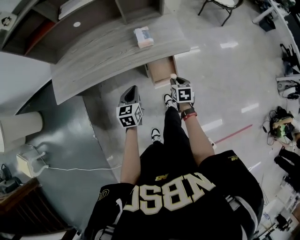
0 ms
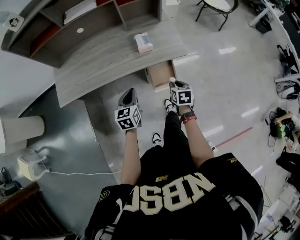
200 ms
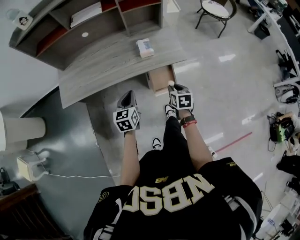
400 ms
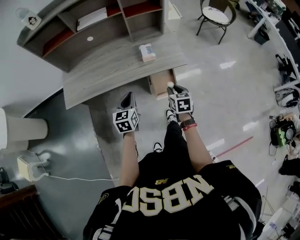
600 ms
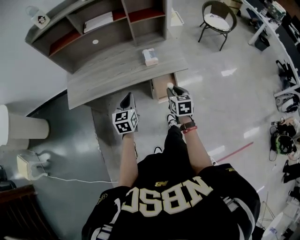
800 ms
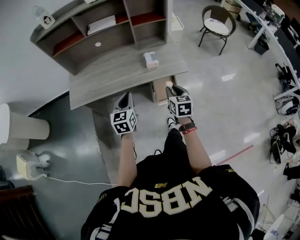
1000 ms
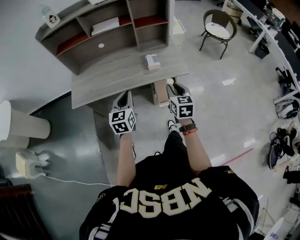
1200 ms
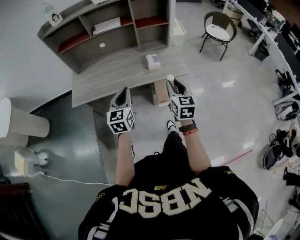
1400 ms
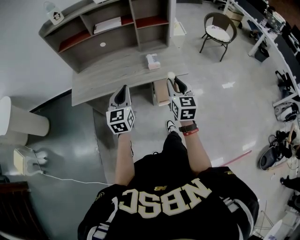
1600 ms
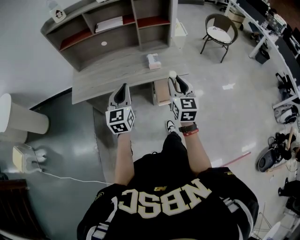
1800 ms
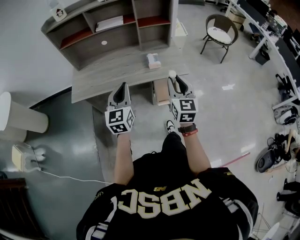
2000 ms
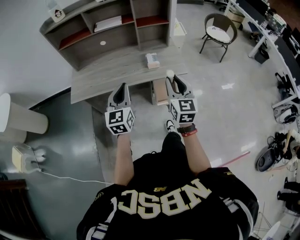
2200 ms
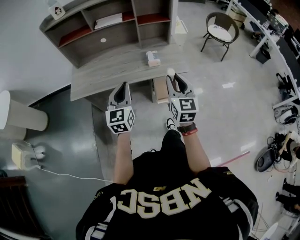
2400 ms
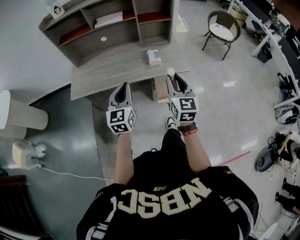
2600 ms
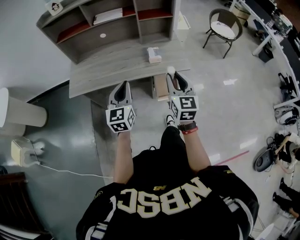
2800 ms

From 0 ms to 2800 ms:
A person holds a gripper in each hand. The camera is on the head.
From 0 ms to 1400 ms: Both grippers move upward, about 25 cm. The right gripper tilts its fingers approximately 30 degrees upward. The left gripper turns by about 20 degrees.
From 1400 ms to 2800 ms: The grippers move only a little.

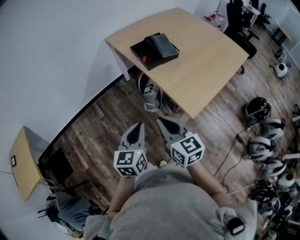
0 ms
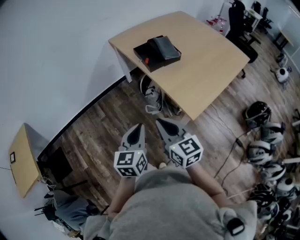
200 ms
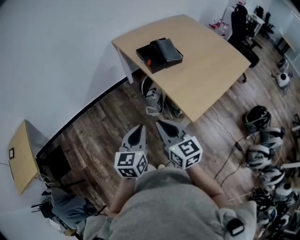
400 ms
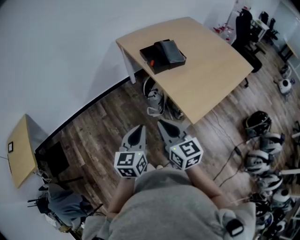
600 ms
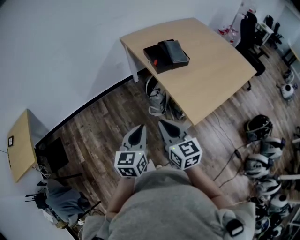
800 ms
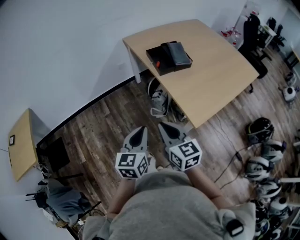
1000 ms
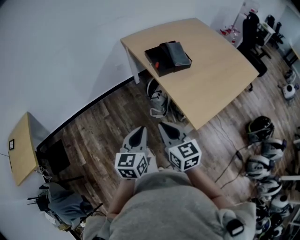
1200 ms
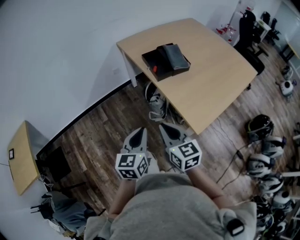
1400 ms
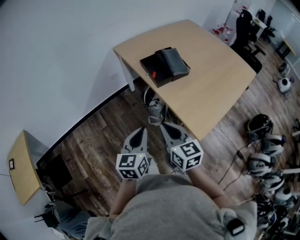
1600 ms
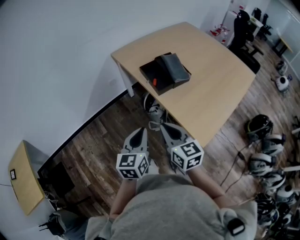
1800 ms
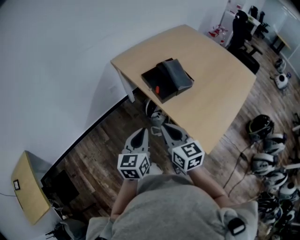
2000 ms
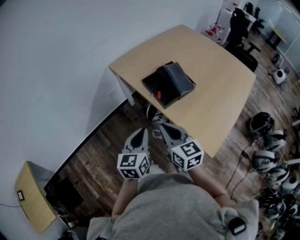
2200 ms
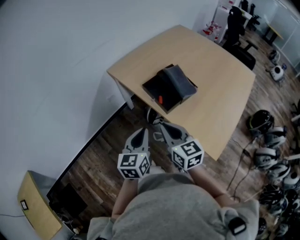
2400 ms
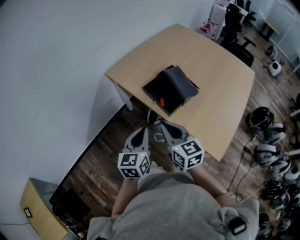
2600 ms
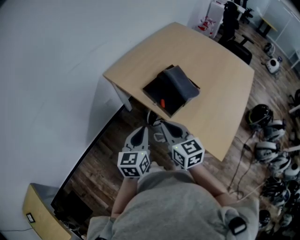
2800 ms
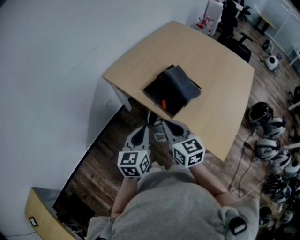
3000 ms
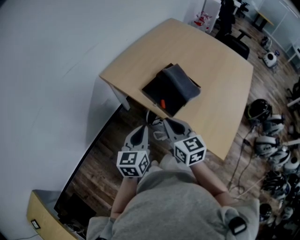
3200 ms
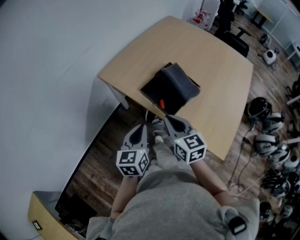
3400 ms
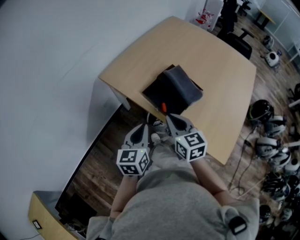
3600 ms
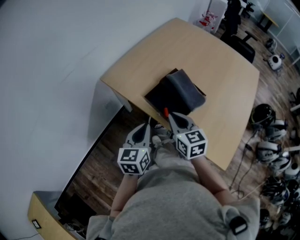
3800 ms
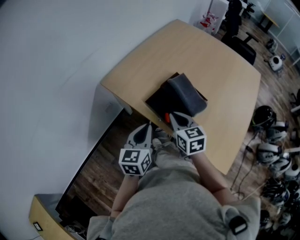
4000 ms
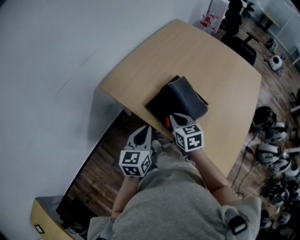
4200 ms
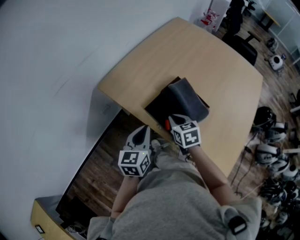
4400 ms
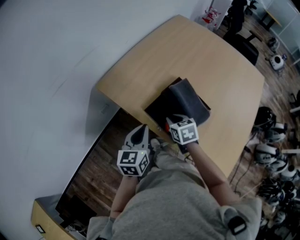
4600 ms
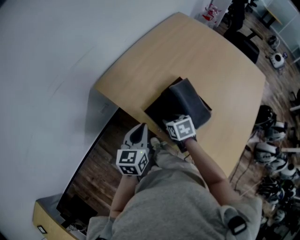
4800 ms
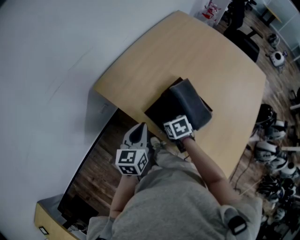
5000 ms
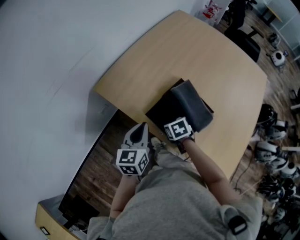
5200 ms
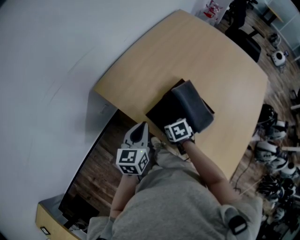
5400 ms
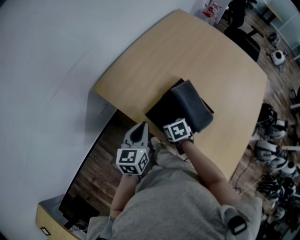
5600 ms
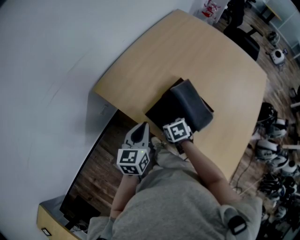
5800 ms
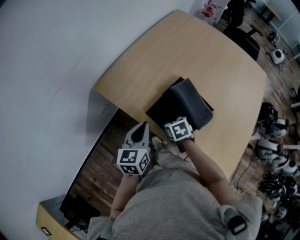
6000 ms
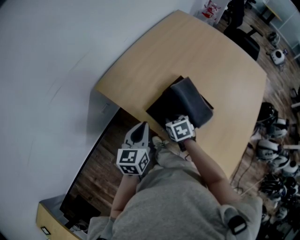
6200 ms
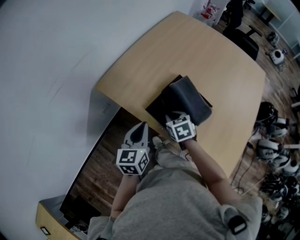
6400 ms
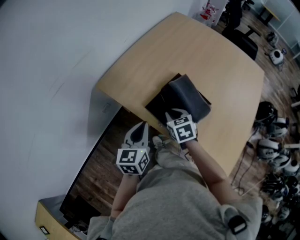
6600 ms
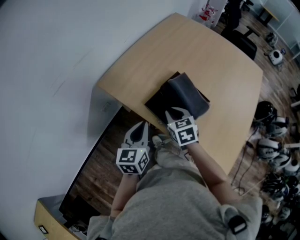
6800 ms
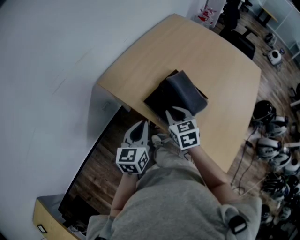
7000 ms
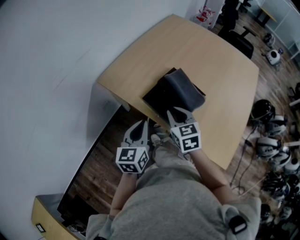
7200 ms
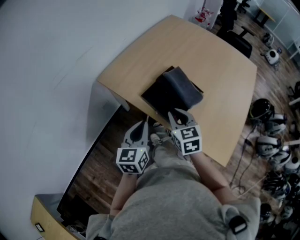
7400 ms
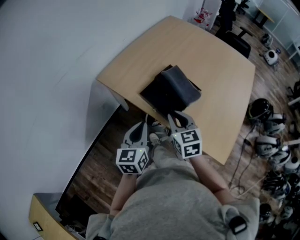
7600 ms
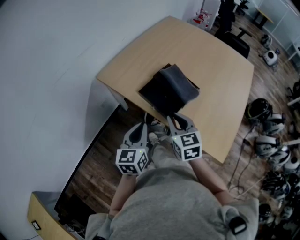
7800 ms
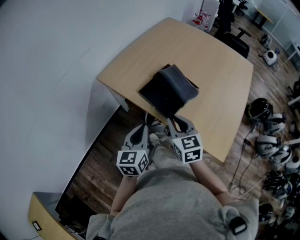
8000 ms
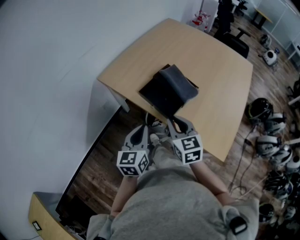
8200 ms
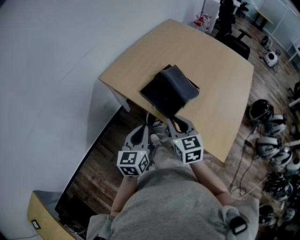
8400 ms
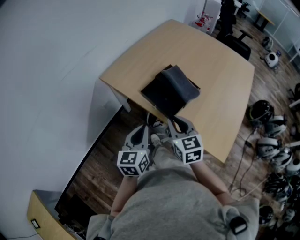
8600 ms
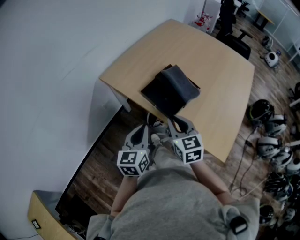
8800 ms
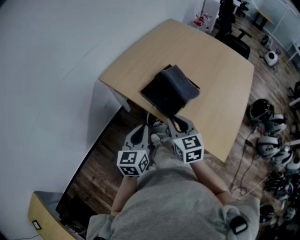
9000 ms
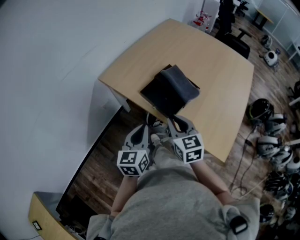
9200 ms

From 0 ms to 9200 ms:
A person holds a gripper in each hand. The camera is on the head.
From 0 ms to 1600 ms: The two grippers go about 10 cm forward.
From 1600 ms to 3000 ms: The two grippers go about 25 cm forward.
From 3000 ms to 4600 ms: The left gripper travels forward by approximately 15 cm. The right gripper is displaced forward and downward by roughly 25 cm, and angles its fingers downward, by roughly 30 degrees.
From 6200 ms to 7600 ms: The left gripper shifts roughly 10 cm backward, while the right gripper moves upward and backward, roughly 20 cm, and changes its angle by roughly 30 degrees.
From 7600 ms to 9200 ms: The grippers make only small movements.

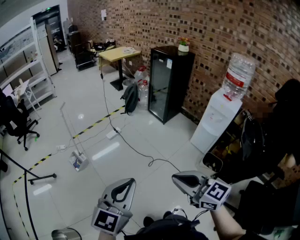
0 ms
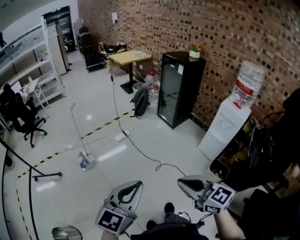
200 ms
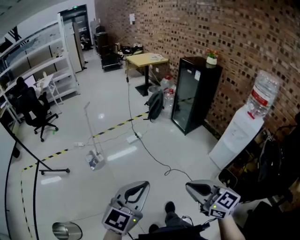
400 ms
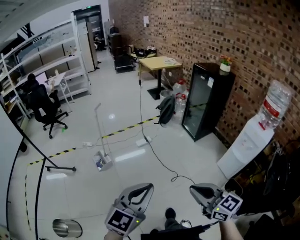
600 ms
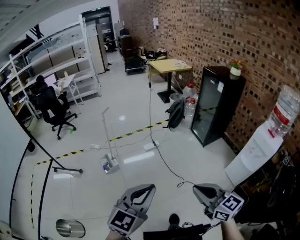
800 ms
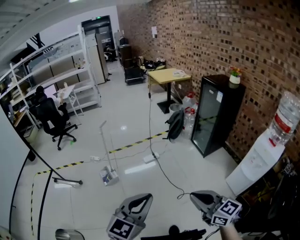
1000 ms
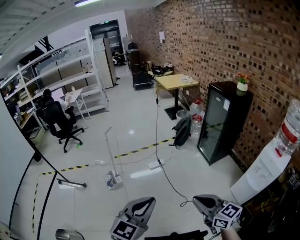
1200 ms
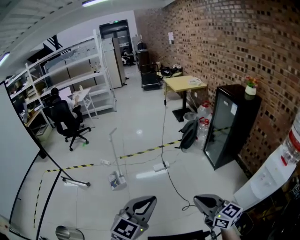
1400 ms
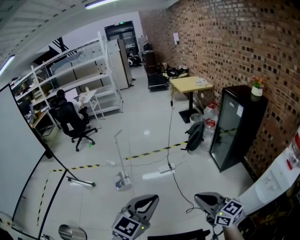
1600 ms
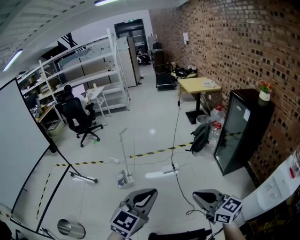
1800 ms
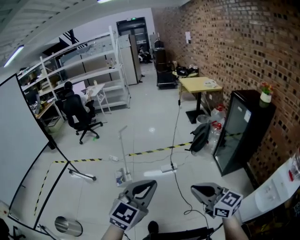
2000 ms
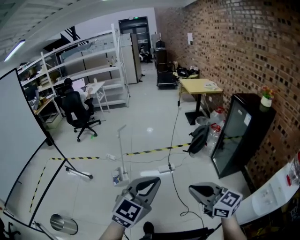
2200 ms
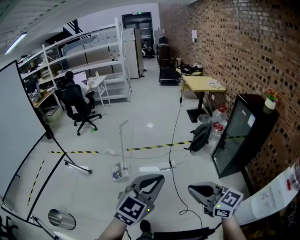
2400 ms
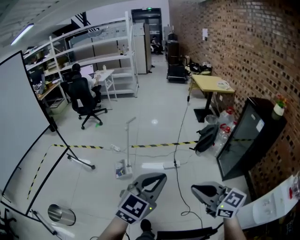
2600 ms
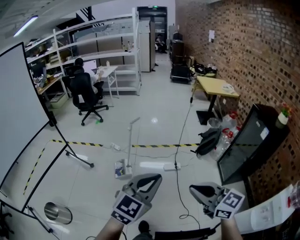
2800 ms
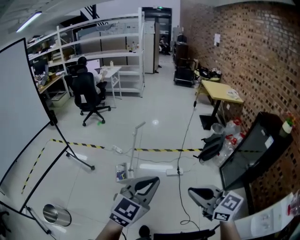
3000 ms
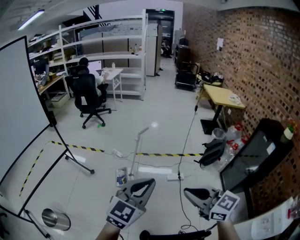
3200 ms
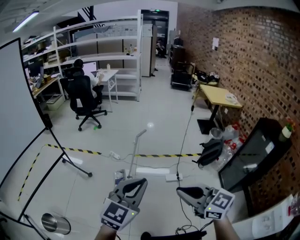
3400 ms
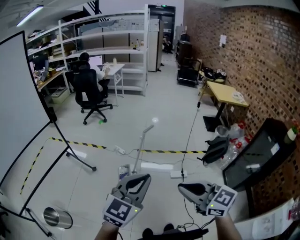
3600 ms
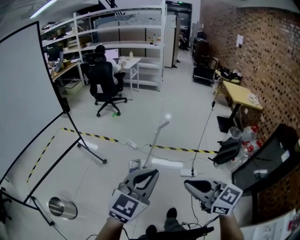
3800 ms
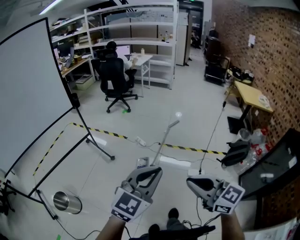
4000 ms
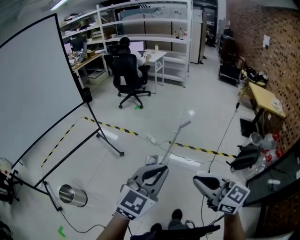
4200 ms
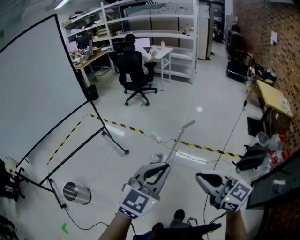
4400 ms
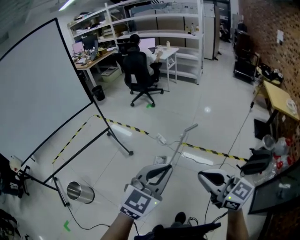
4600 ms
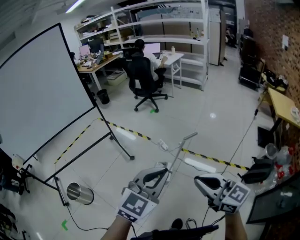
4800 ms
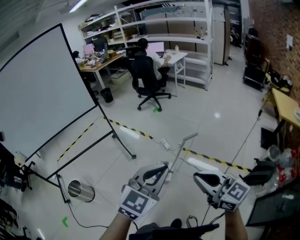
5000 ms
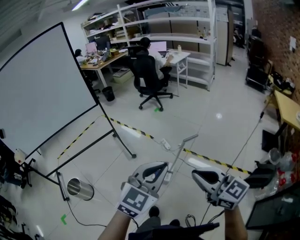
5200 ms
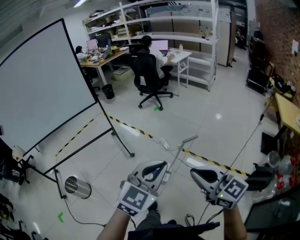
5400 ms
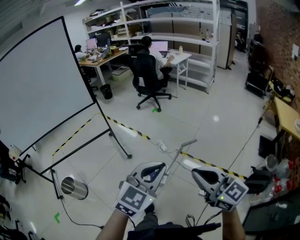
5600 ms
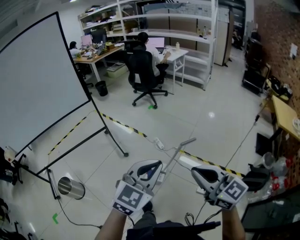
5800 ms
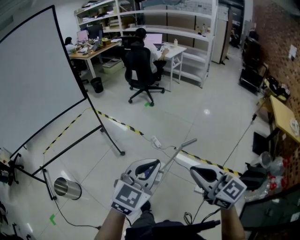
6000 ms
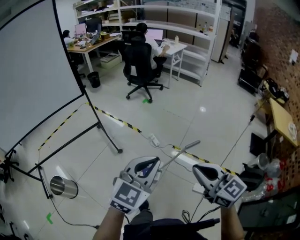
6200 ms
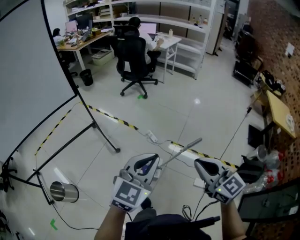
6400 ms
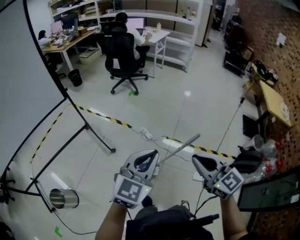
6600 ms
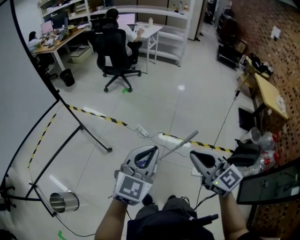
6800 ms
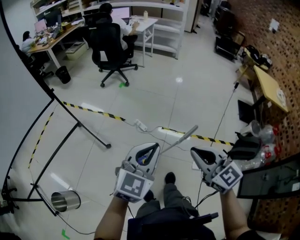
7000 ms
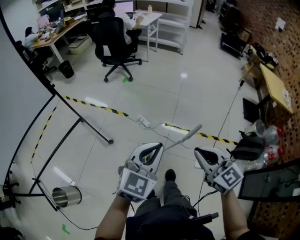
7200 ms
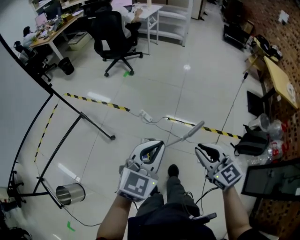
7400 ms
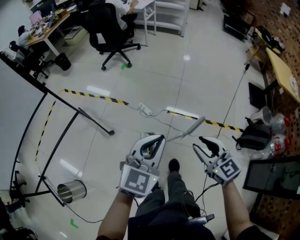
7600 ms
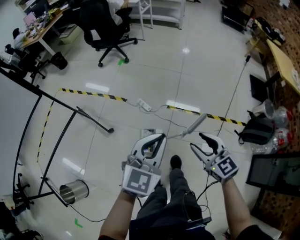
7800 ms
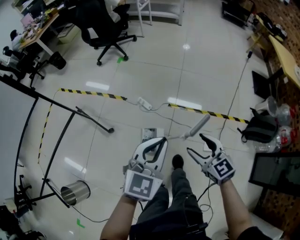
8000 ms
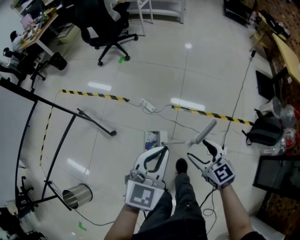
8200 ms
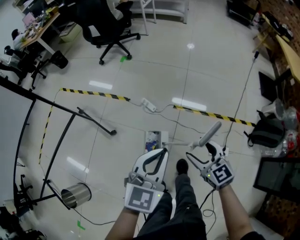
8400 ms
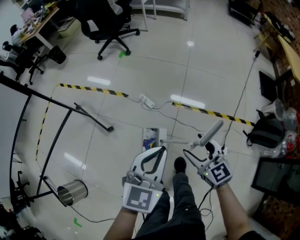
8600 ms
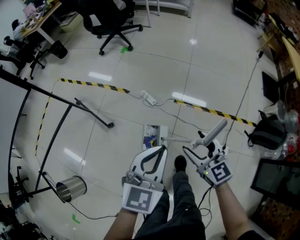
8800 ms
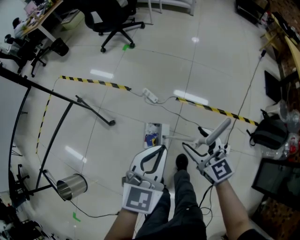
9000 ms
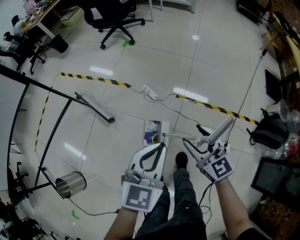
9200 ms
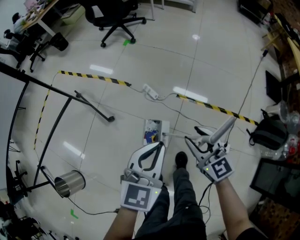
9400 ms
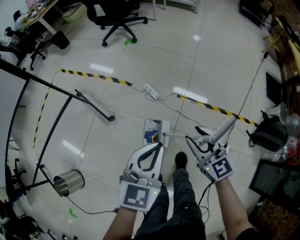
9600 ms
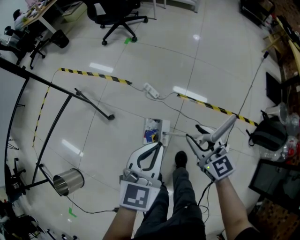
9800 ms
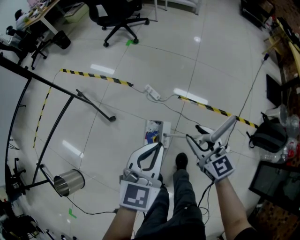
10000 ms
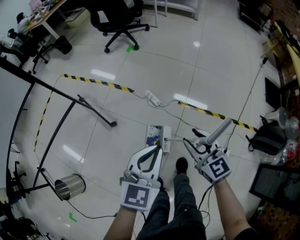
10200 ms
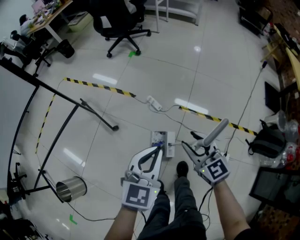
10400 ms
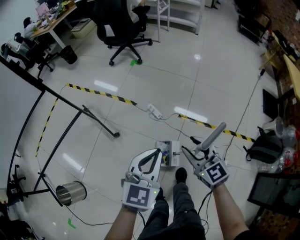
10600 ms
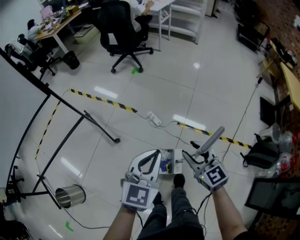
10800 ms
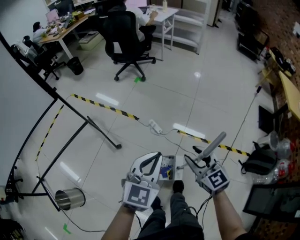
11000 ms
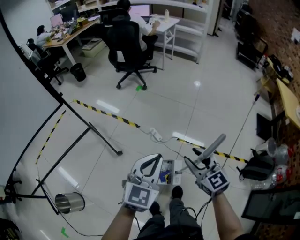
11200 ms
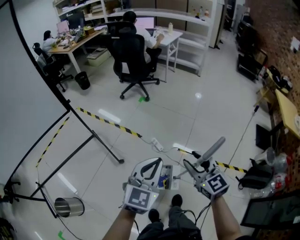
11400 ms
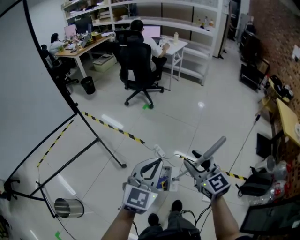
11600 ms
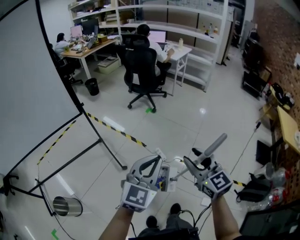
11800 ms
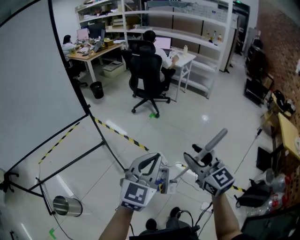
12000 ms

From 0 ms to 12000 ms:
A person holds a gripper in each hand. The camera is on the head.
From 0 ms to 1600 ms: The two grippers go about 25 cm forward. The left gripper changes its angle by approximately 20 degrees.
From 1600 ms to 3000 ms: Both grippers move forward and to the left, about 25 cm. The right gripper changes its angle by about 20 degrees.
From 3000 ms to 4400 ms: Both grippers travel together forward and to the left, roughly 20 cm. The left gripper changes its angle by about 20 degrees.
From 4400 ms to 6000 ms: The right gripper shifts some 20 cm forward and to the right; the left gripper goes some 15 cm forward.
From 6000 ms to 7600 ms: The right gripper goes about 25 cm downward and forward, changes its angle by approximately 20 degrees, and opens up. The left gripper is displaced forward and downward by approximately 20 cm.
From 7600 ms to 9000 ms: The left gripper is displaced downward by approximately 15 cm. The right gripper shifts about 15 cm downward and forward, and opens up.
From 9000 ms to 10400 ms: The right gripper moves about 5 cm, and closes up.
From 10400 ms to 12000 ms: The grippers both shift upward by some 30 cm. The left gripper swivels roughly 20 degrees.
